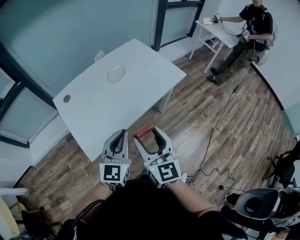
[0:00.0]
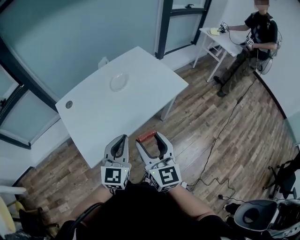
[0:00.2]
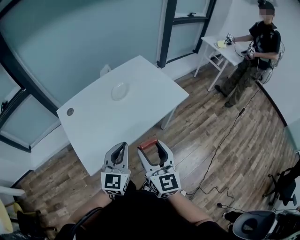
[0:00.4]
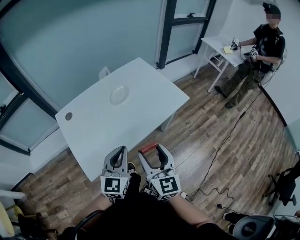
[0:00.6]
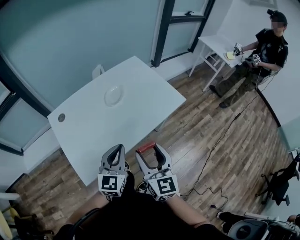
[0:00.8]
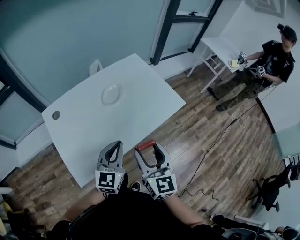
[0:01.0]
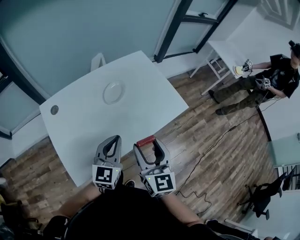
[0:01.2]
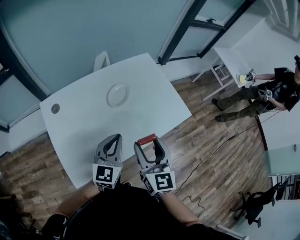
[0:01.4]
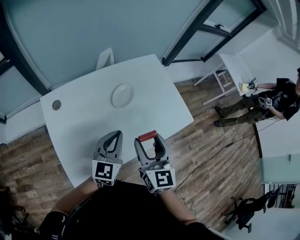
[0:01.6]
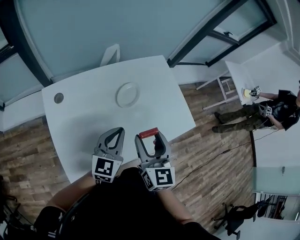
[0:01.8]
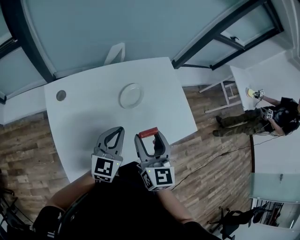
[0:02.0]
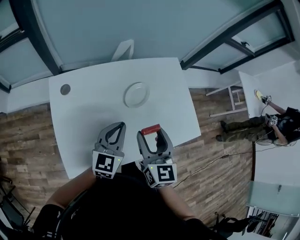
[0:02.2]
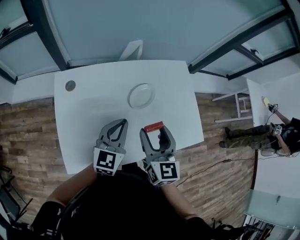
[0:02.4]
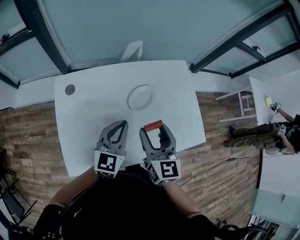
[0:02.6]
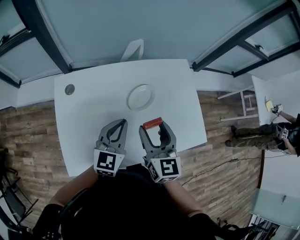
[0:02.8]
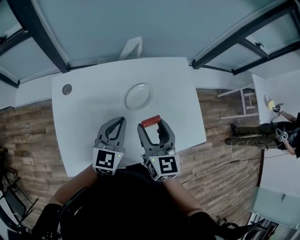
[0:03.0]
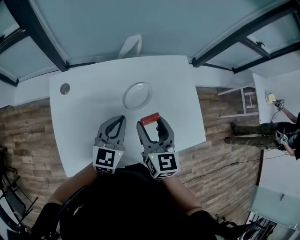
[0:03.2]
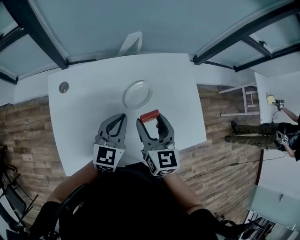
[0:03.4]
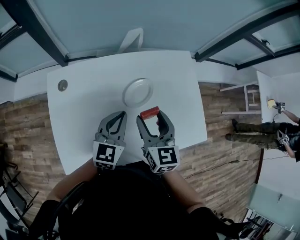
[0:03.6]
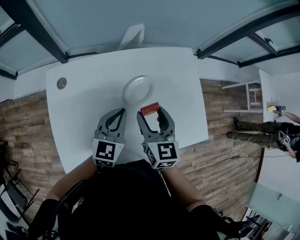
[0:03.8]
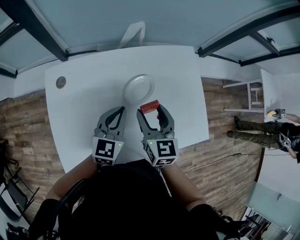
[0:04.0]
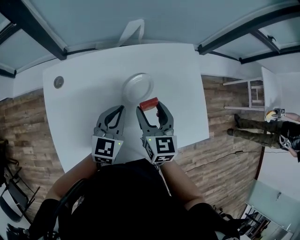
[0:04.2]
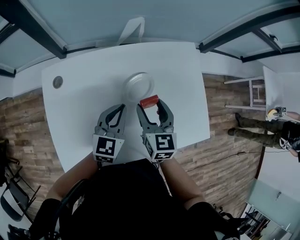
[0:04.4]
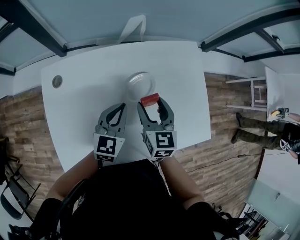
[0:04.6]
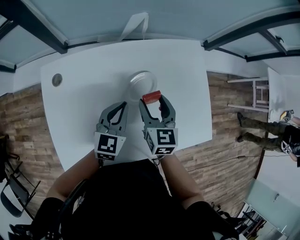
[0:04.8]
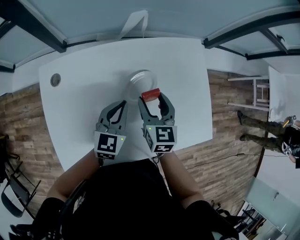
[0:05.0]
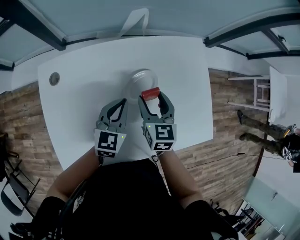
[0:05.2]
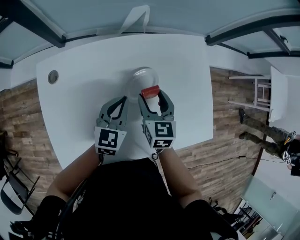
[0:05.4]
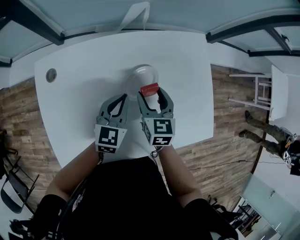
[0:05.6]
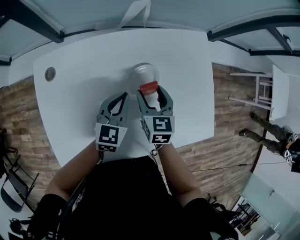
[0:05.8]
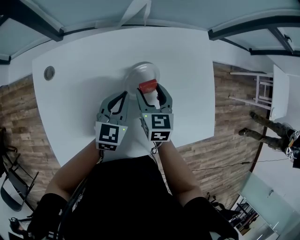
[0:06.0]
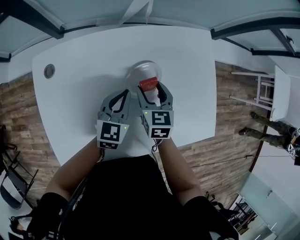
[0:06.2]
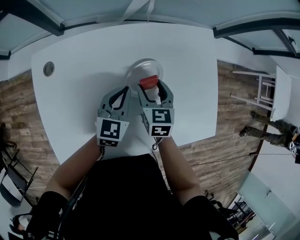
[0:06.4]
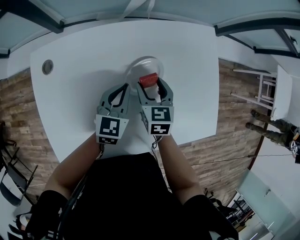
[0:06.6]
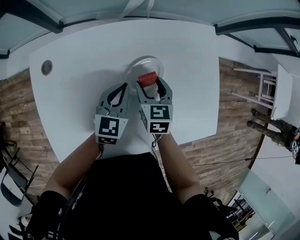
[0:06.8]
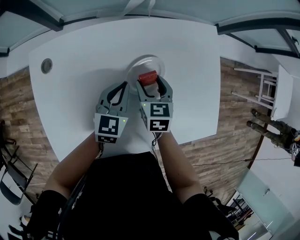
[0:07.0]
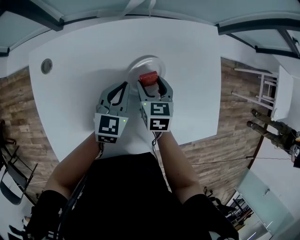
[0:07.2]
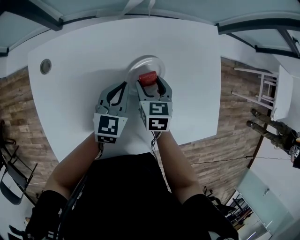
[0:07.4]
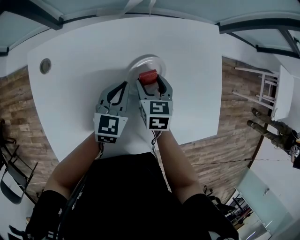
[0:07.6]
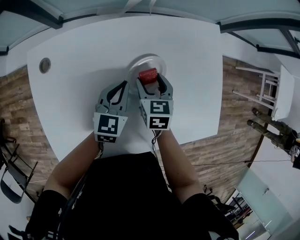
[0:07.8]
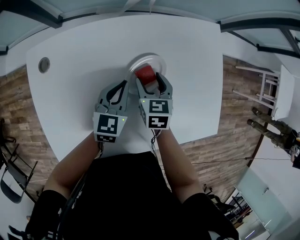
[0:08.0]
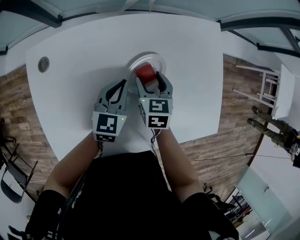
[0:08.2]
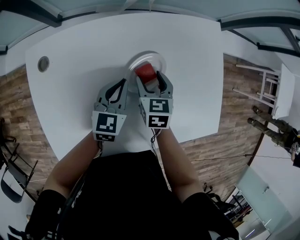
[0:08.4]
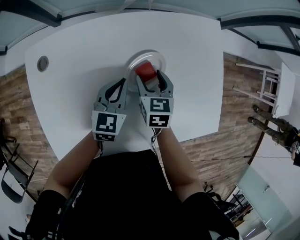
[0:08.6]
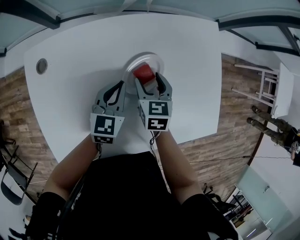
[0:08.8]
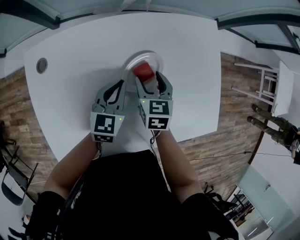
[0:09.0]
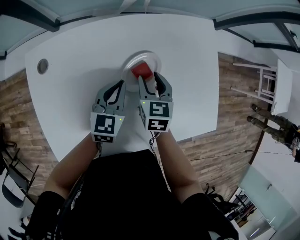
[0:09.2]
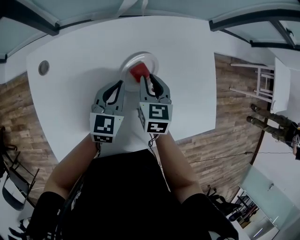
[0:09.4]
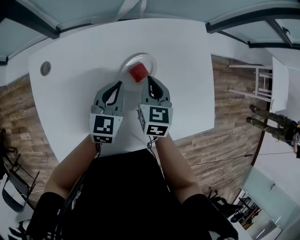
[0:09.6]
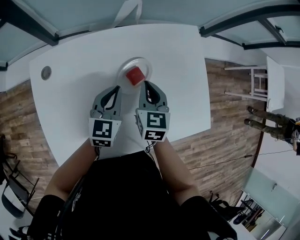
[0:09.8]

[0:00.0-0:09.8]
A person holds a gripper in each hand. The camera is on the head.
0.0 to 1.4 s: The two grippers go about 20 cm forward.
1.4 to 2.8 s: The grippers both shift forward by roughly 15 cm.
2.8 to 4.2 s: The left gripper travels downward and forward by about 10 cm. Meanwhile the right gripper goes approximately 10 cm forward and downward.
4.2 to 5.6 s: Both grippers travel together downward, about 5 cm.
5.6 to 7.0 s: The right gripper heads downward, covering approximately 5 cm.
7.0 to 8.4 s: There are only small adjustments of the grippers.
8.4 to 9.8 s: The right gripper travels upward by roughly 10 cm, and closes up. Meanwhile the left gripper ends up roughly 5 cm from where it was.

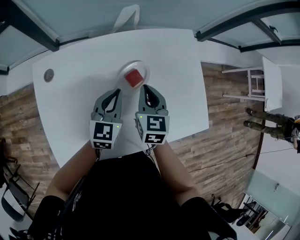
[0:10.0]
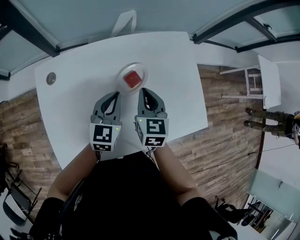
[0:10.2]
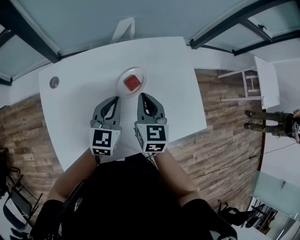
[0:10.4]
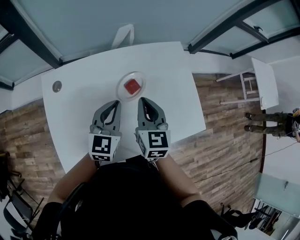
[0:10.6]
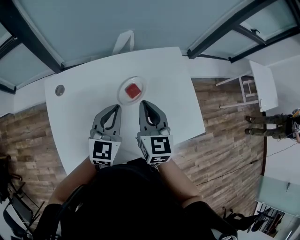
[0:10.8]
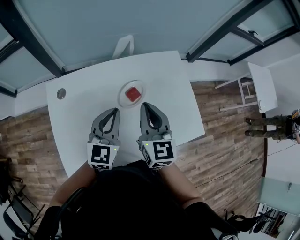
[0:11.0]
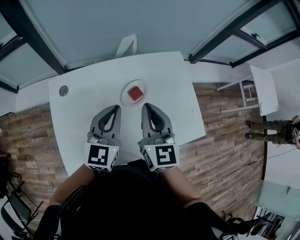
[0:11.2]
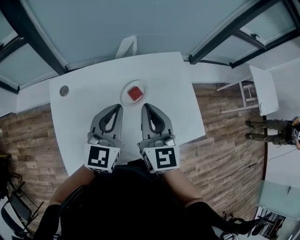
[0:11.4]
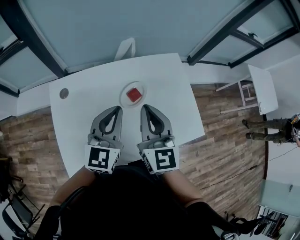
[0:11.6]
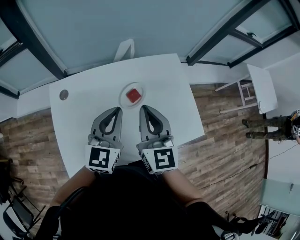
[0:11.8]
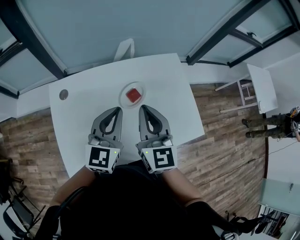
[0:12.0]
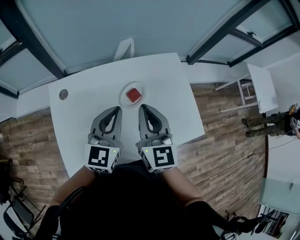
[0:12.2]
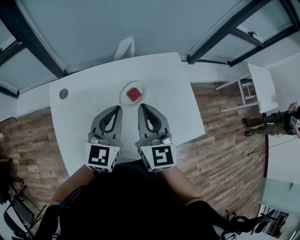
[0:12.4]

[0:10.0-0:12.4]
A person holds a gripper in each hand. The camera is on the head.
10.0 to 11.2 s: Both grippers move upward, about 15 cm. The right gripper rotates some 20 degrees.
11.2 to 12.4 s: There are only small adjustments of the grippers.

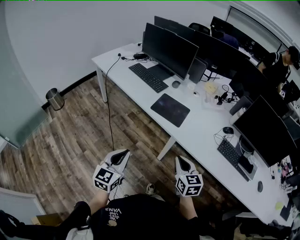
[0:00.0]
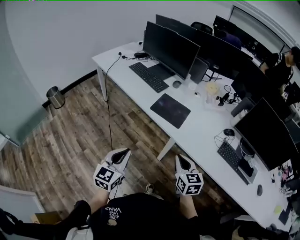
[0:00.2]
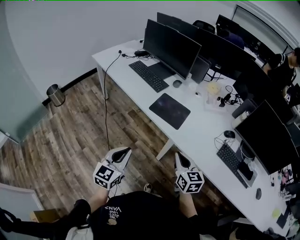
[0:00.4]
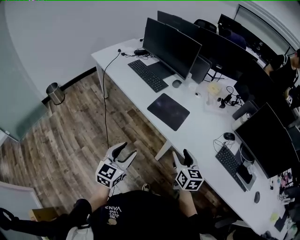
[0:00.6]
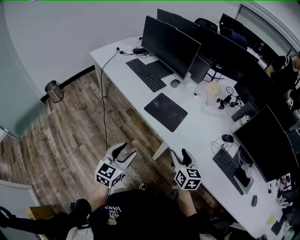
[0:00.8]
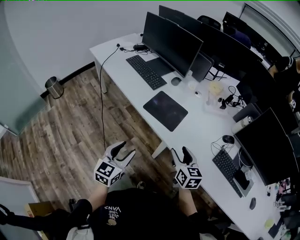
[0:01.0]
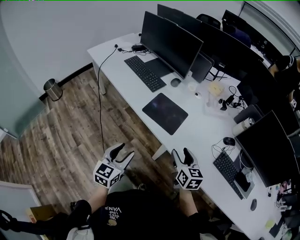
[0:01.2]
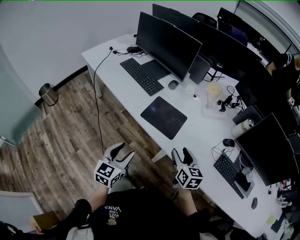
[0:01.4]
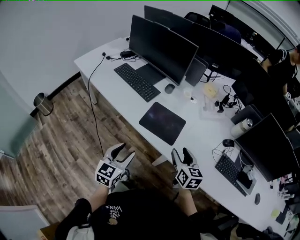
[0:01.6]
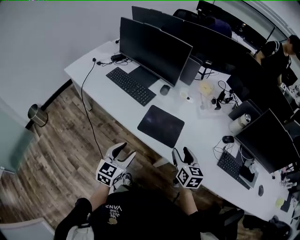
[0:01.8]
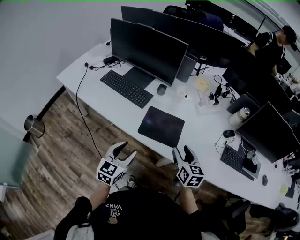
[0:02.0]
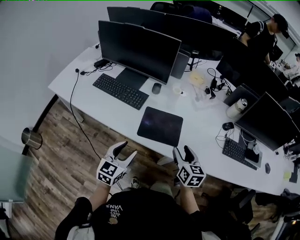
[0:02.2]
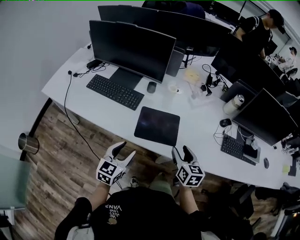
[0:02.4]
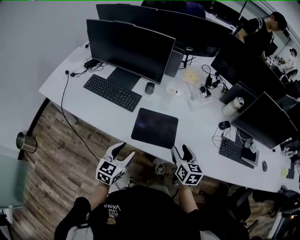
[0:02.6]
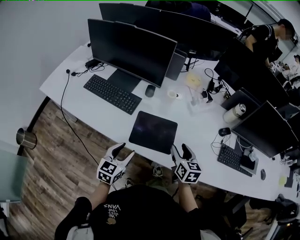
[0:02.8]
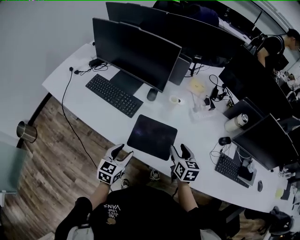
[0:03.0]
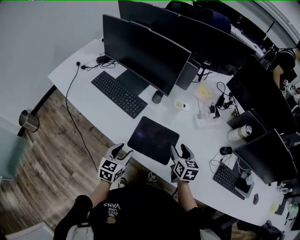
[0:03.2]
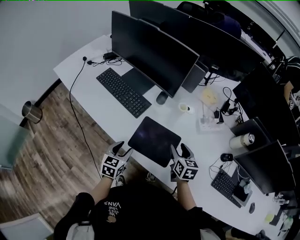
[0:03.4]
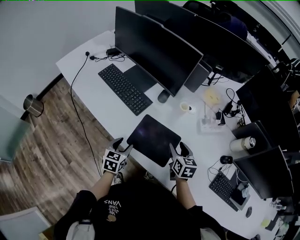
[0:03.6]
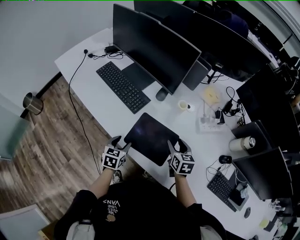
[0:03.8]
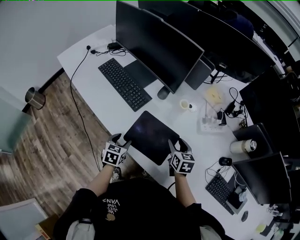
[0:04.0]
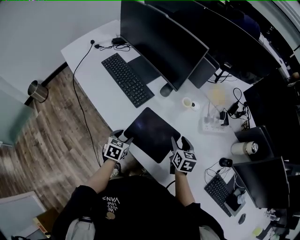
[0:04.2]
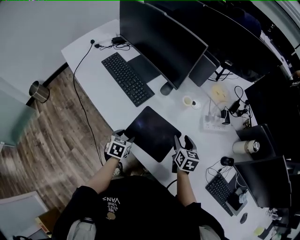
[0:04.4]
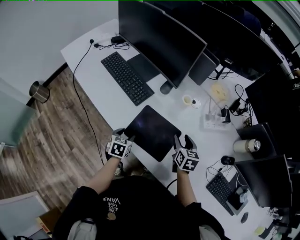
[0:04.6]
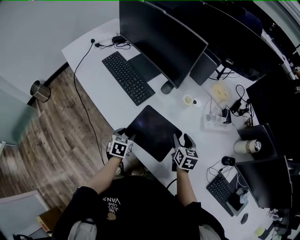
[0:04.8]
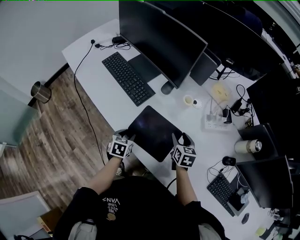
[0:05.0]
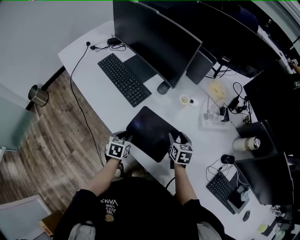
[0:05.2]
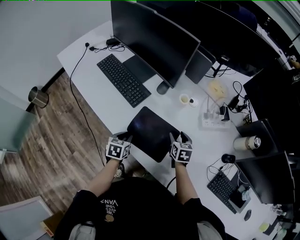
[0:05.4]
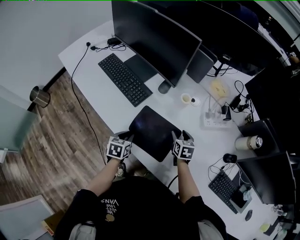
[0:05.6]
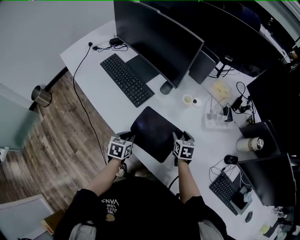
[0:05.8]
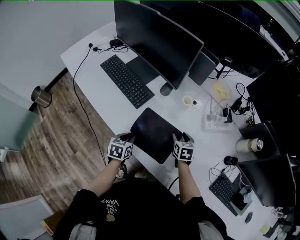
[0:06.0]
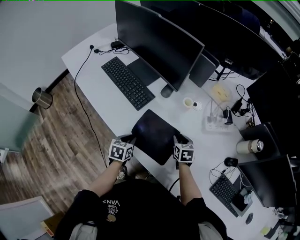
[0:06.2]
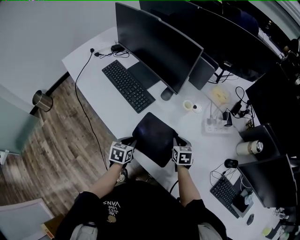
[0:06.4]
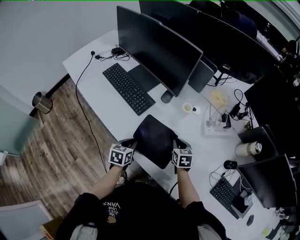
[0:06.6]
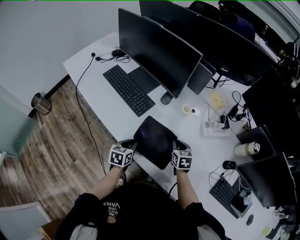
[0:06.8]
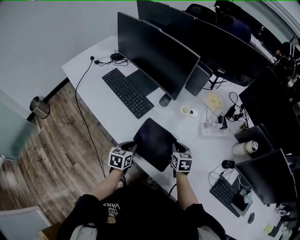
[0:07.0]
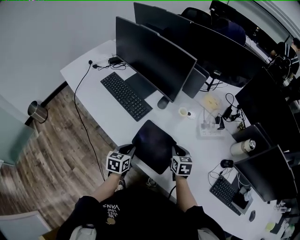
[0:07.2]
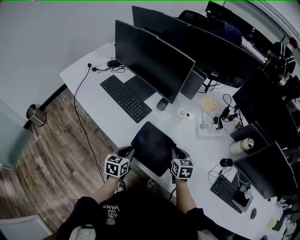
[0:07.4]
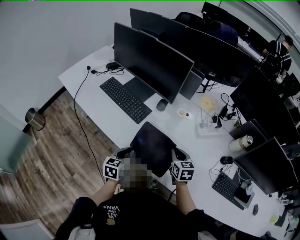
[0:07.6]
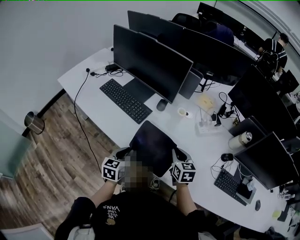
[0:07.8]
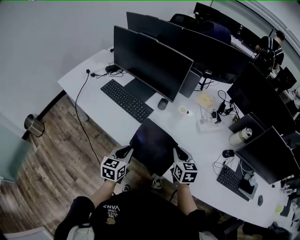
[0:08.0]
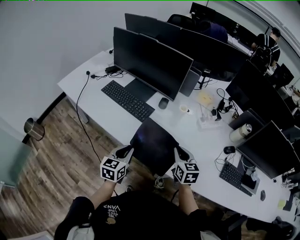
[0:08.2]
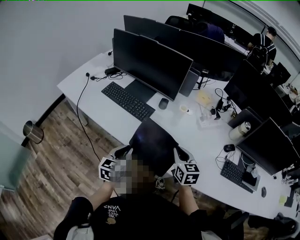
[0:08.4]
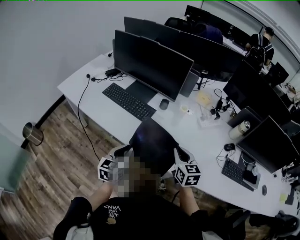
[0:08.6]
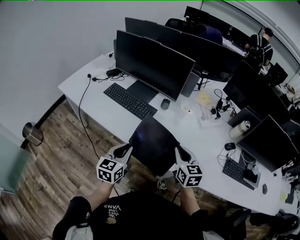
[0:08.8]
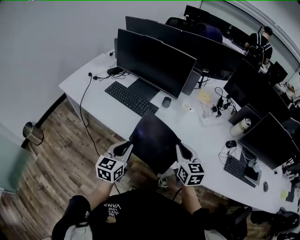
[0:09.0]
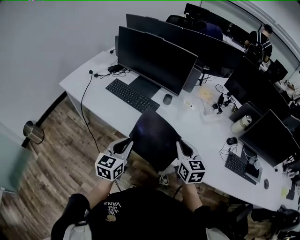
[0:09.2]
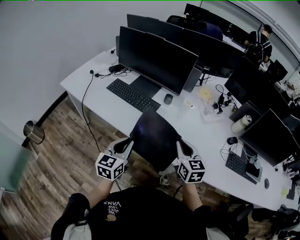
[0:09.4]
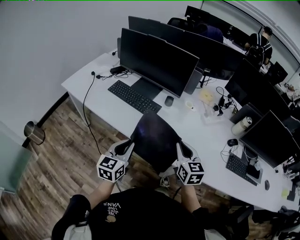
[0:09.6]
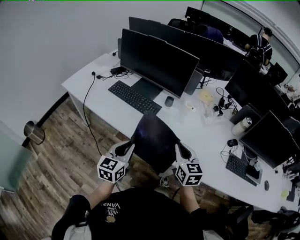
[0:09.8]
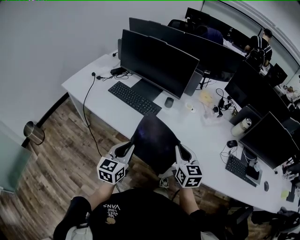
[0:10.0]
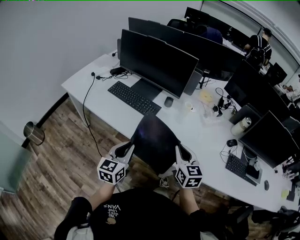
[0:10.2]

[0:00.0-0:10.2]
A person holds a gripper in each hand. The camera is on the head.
0.0 to 1.4 s: Both grippers move forward, roughly 15 cm. The left gripper opens up, while the right gripper opens up.
1.4 to 3.0 s: The right gripper shifts by about 15 cm. Meanwhile the left gripper shifts by about 20 cm.
3.0 to 4.4 s: The right gripper travels forward and downward by roughly 10 cm, while the left gripper moves downward, roughly 10 cm, and changes its angle by approximately 30 degrees.
4.4 to 5.8 s: The right gripper goes about 5 cm downward, while the left gripper closes up.
5.8 to 7.2 s: The grippers both shift upward by roughly 5 cm. The right gripper closes up.
7.2 to 8.8 s: The left gripper heads upward, to the left and backward, covering roughly 15 cm, and turns by some 20 degrees. Meanwhile the right gripper is displaced upward, backward and to the left by roughly 20 cm.
8.8 to 10.2 s: The grippers move only a little.

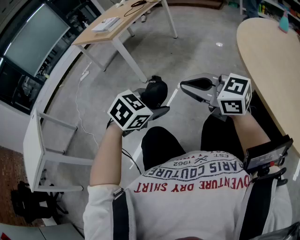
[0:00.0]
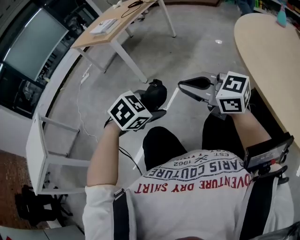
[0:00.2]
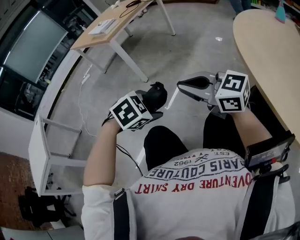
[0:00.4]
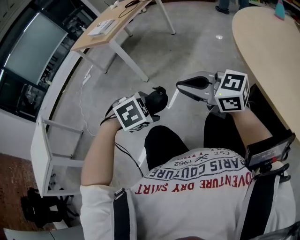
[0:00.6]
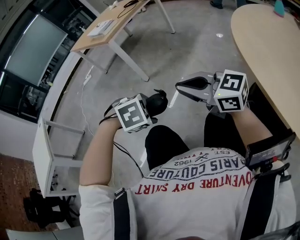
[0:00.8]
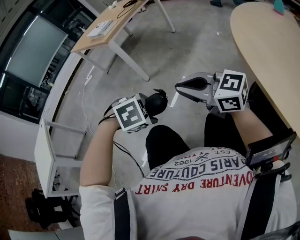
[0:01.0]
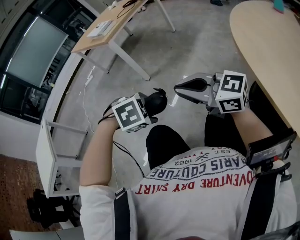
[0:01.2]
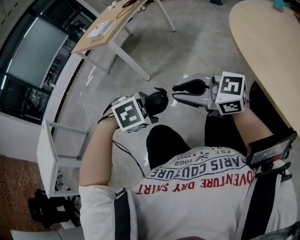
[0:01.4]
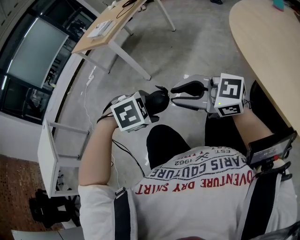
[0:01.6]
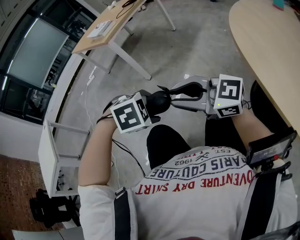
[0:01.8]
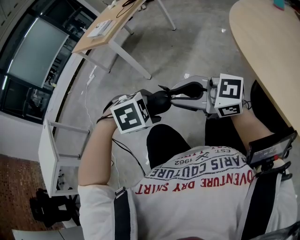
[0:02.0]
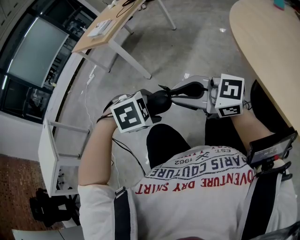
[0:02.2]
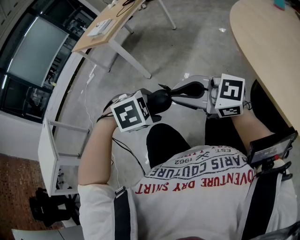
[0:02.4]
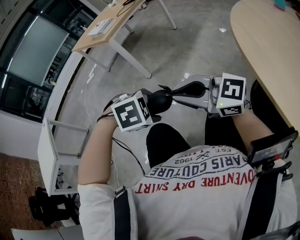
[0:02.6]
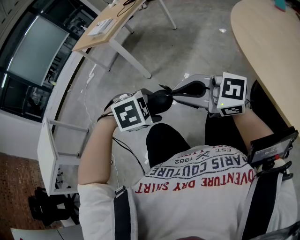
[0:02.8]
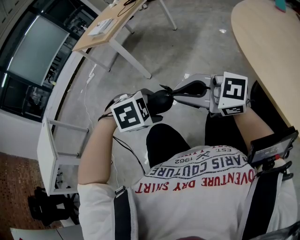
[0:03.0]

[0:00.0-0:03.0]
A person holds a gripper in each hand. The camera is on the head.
0.0 to 1.6 s: The left gripper changes place by some 5 cm, and turns by about 40 degrees. The right gripper opens up.
1.6 to 3.0 s: The grippers stay close to where they were, moving slightly.
